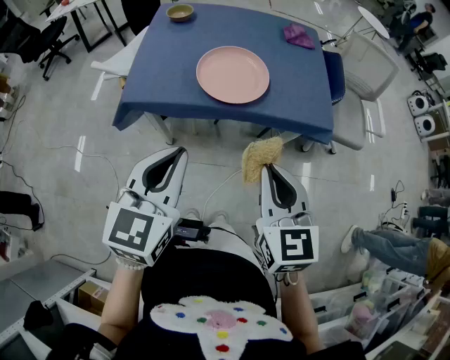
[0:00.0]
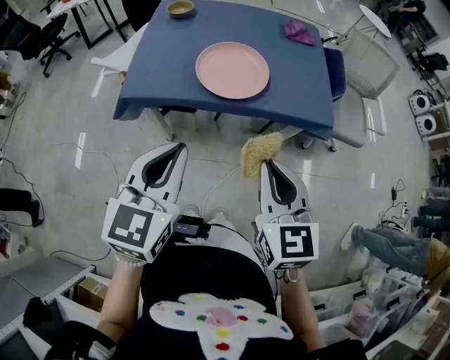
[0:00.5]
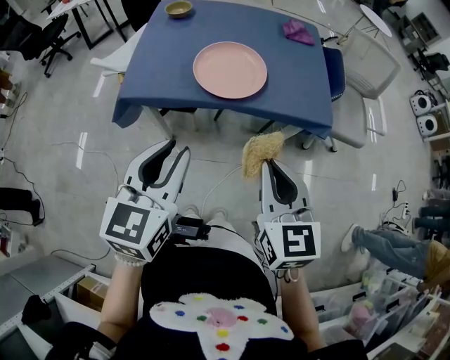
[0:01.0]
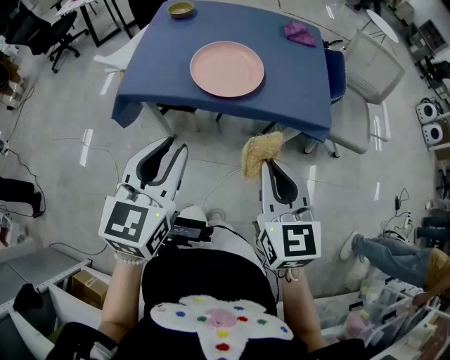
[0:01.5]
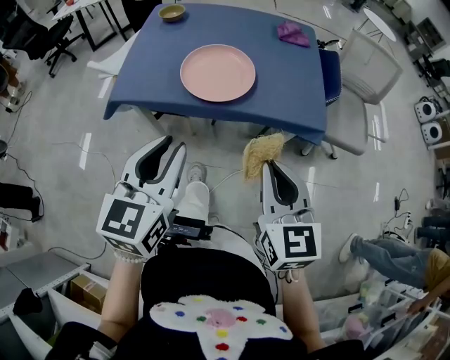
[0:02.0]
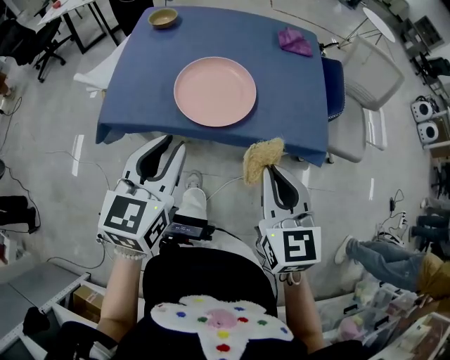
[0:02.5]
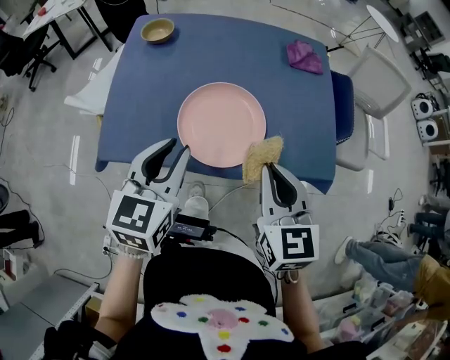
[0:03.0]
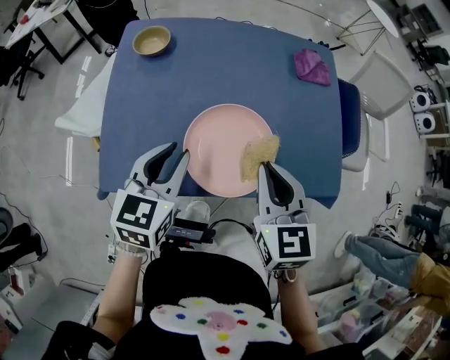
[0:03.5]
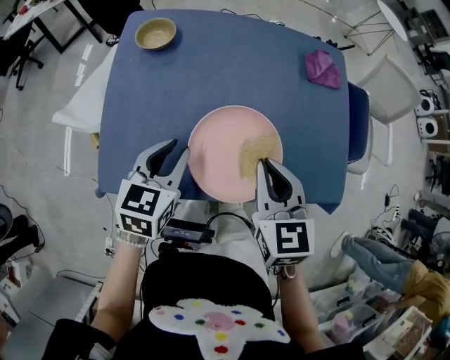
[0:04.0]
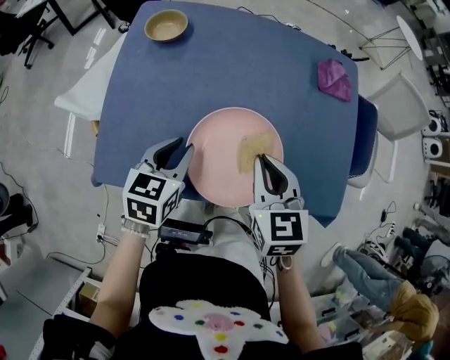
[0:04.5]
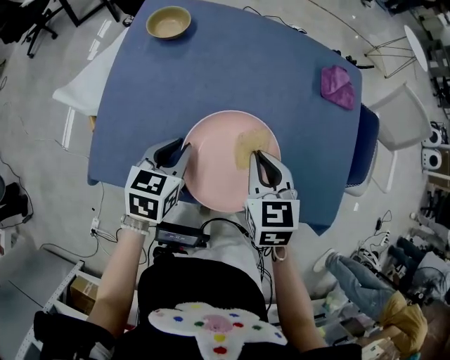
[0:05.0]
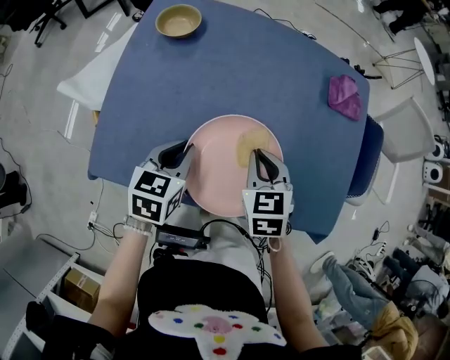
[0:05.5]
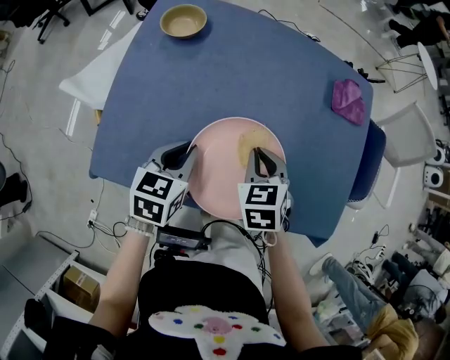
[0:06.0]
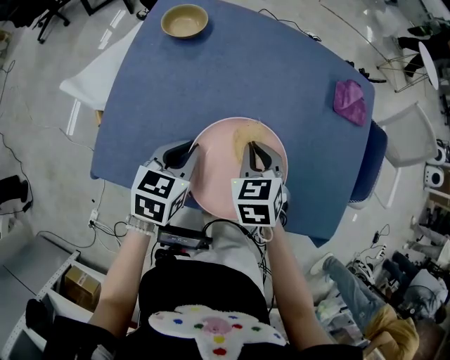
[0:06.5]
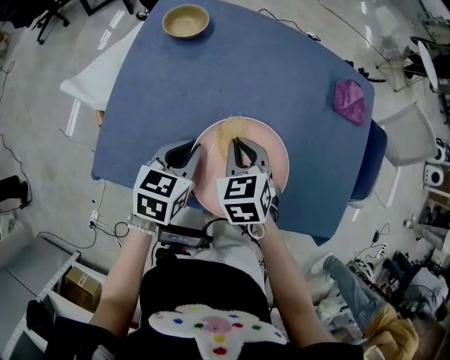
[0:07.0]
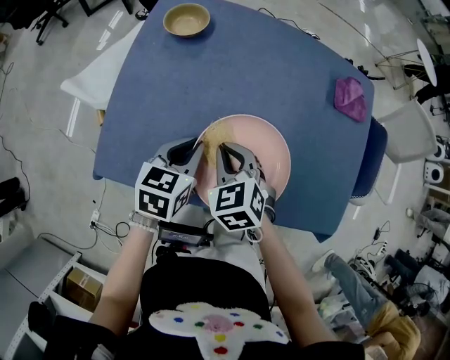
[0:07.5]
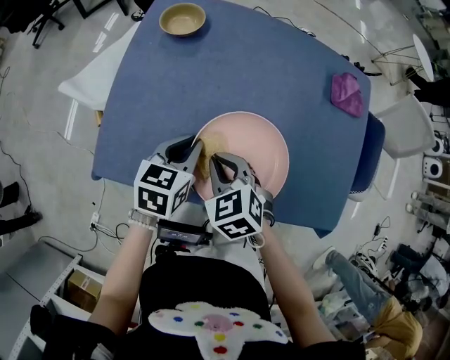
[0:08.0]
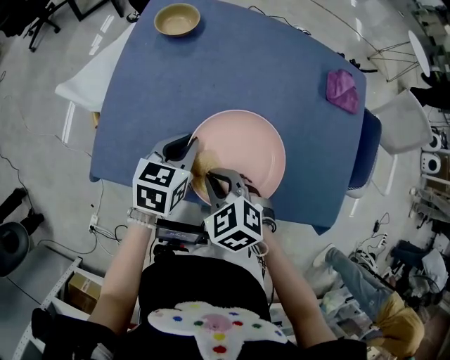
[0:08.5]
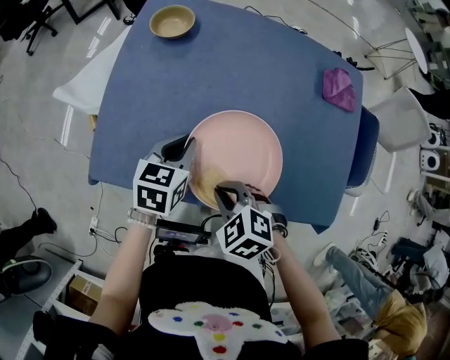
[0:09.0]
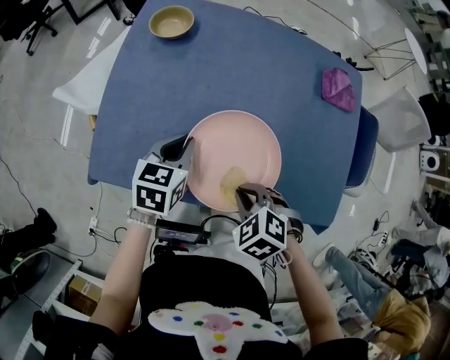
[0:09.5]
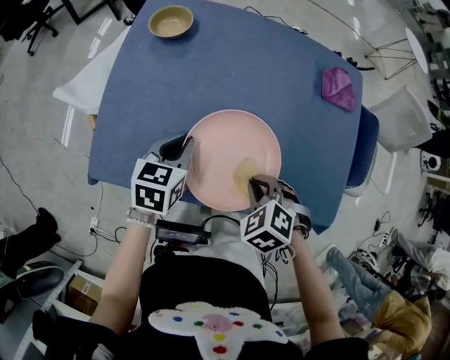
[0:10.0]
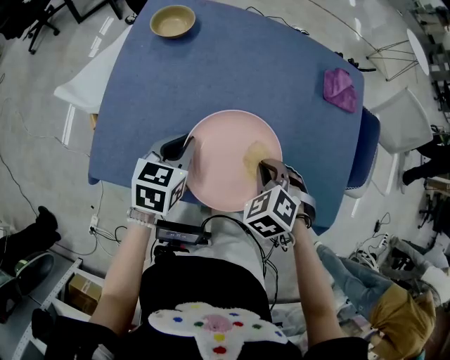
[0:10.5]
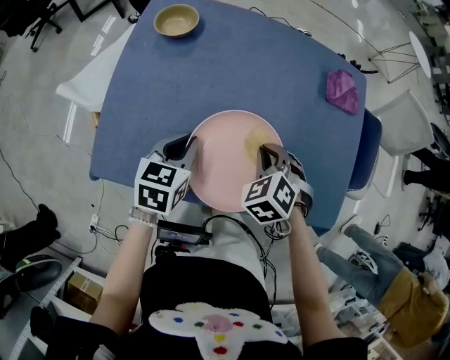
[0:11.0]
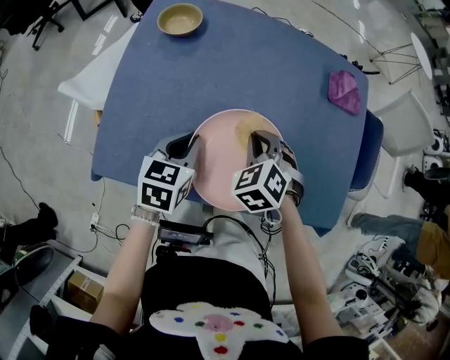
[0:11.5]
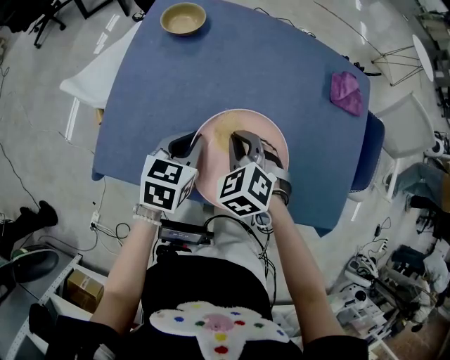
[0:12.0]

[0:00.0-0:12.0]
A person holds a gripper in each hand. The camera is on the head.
0:00.0 to 0:02.0: The left gripper opens up. The right gripper moves to the right, roughly 5 cm.
0:02.0 to 0:04.0: The right gripper heads forward and to the left, covering approximately 30 cm, while the left gripper goes about 30 cm forward and downward, and rotates roughly 20 degrees.
0:04.0 to 0:06.0: The left gripper goes roughly 5 cm downward; the right gripper moves downward and forward, approximately 15 cm, and changes its angle by some 30 degrees.
0:06.0 to 0:08.0: The right gripper heads to the left and backward, covering some 10 cm, and swivels roughly 20 degrees.
0:08.0 to 0:10.0: The right gripper travels to the right and backward by approximately 15 cm, and swivels about 30 degrees.
0:10.0 to 0:12.0: The right gripper goes approximately 15 cm to the left and forward.

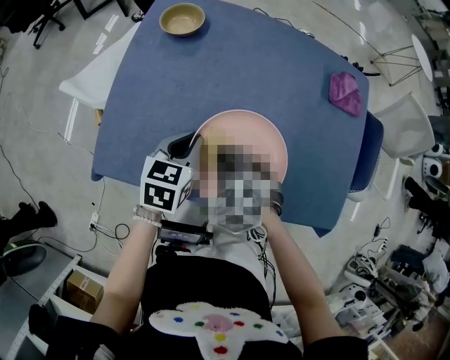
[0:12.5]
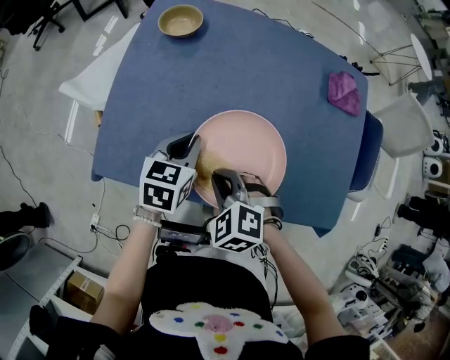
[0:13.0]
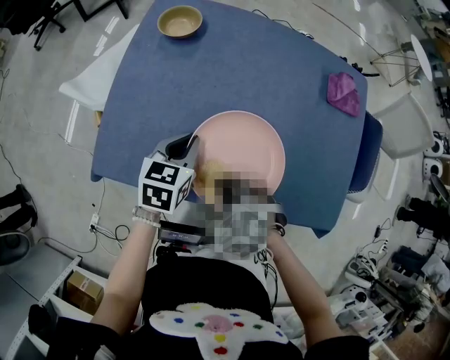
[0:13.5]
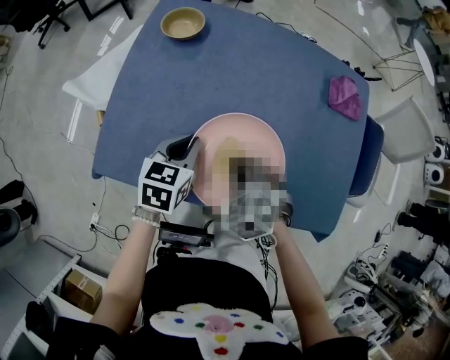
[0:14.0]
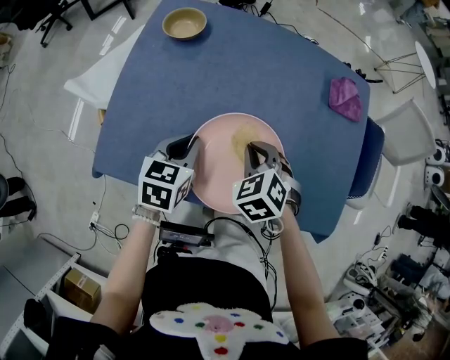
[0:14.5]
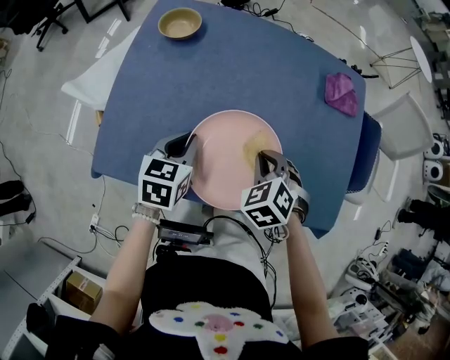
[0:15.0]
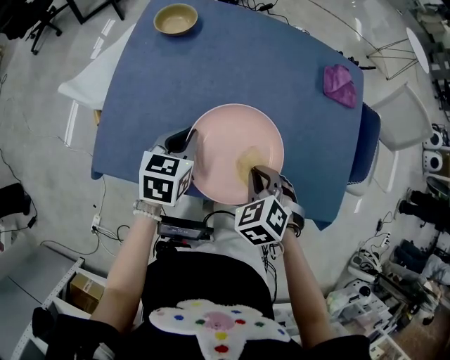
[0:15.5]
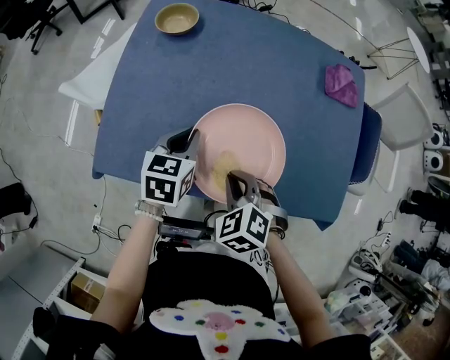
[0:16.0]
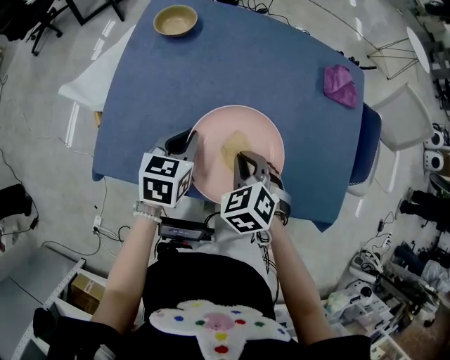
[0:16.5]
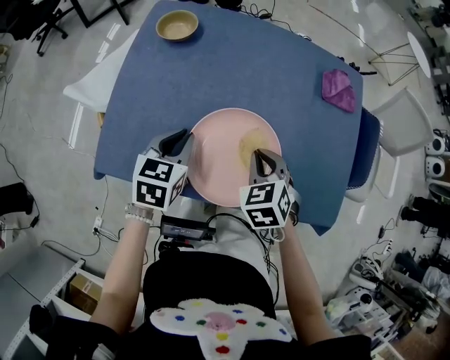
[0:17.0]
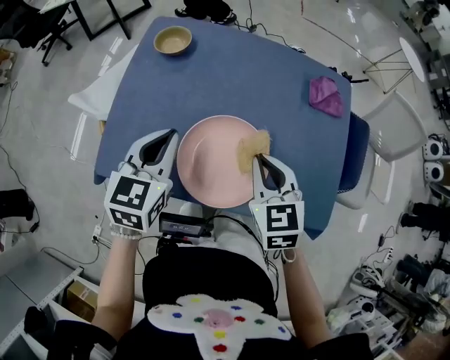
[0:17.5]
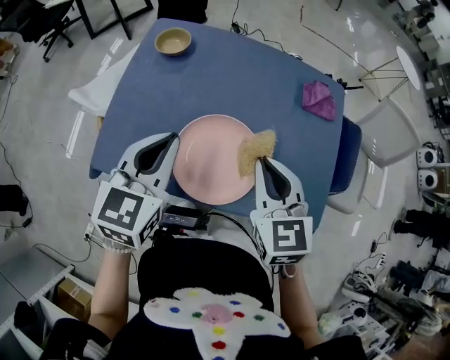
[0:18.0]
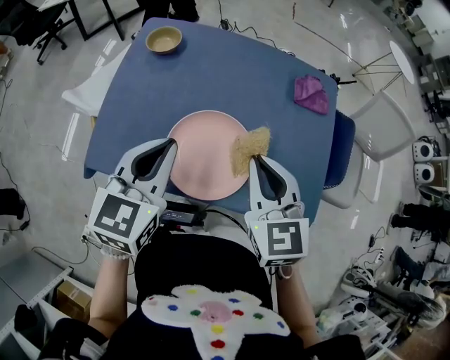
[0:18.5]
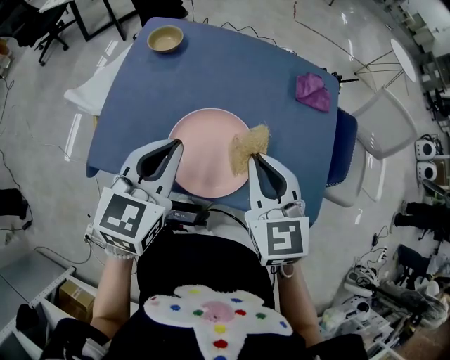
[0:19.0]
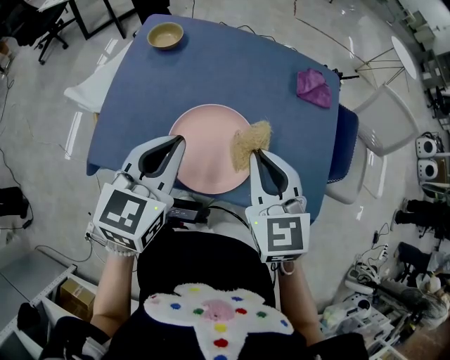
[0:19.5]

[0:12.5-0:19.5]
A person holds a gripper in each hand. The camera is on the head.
0:12.5 to 0:14.5: The right gripper travels to the right by about 10 cm, and travels backward and back again, about 5 cm each way.
0:14.5 to 0:16.0: The right gripper goes approximately 10 cm backward.
0:16.0 to 0:17.5: The right gripper travels upward, forward and to the right by roughly 15 cm, and turns by some 40 degrees, while the left gripper travels upward by roughly 15 cm.
0:17.5 to 0:19.5: The grippers both shift upward by some 5 cm.

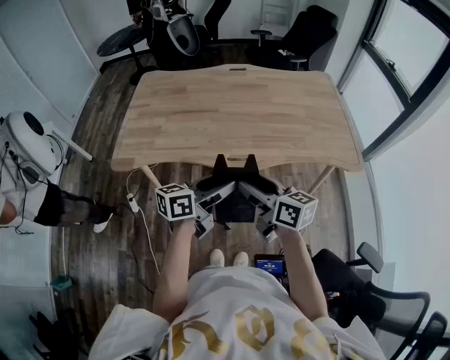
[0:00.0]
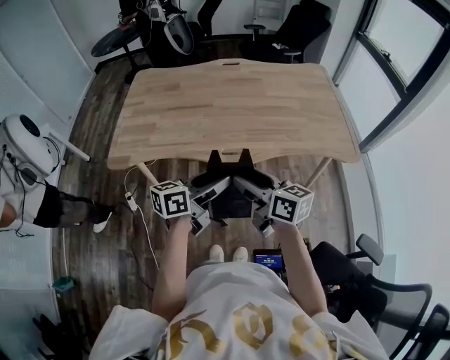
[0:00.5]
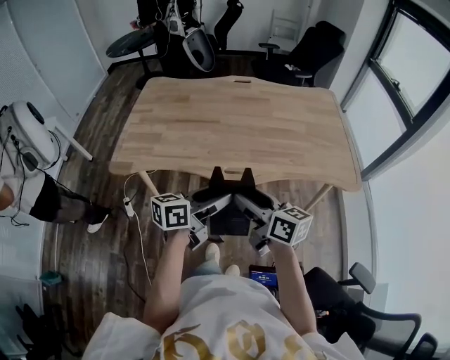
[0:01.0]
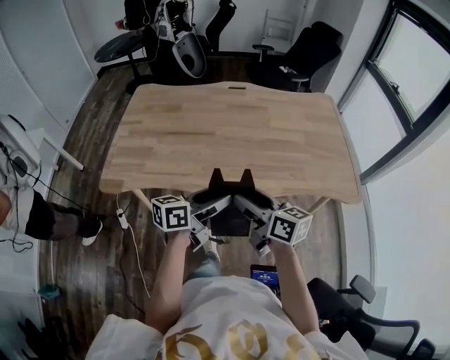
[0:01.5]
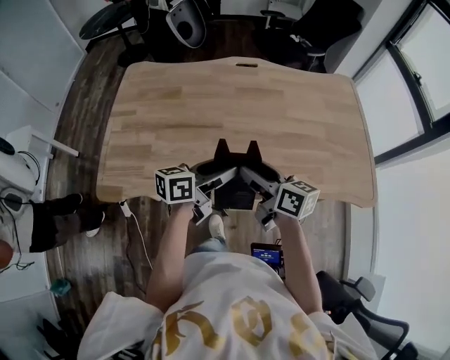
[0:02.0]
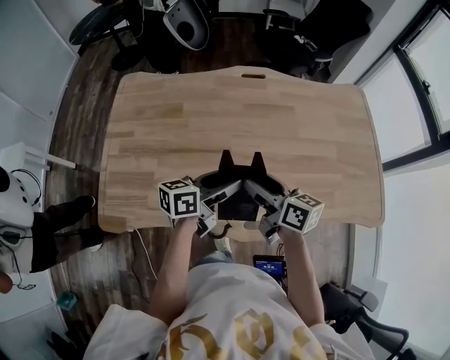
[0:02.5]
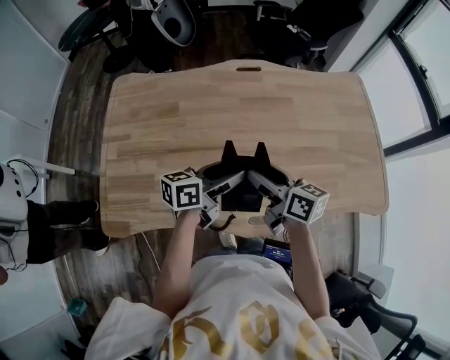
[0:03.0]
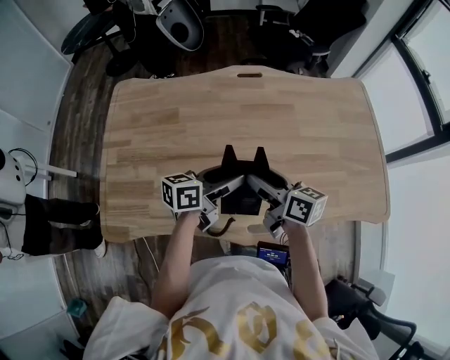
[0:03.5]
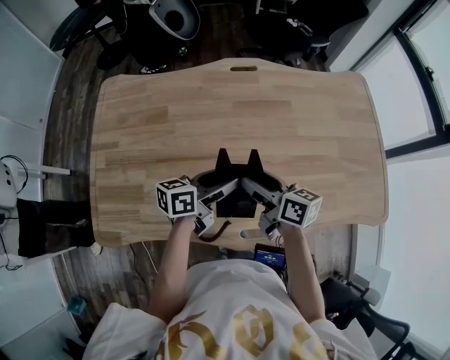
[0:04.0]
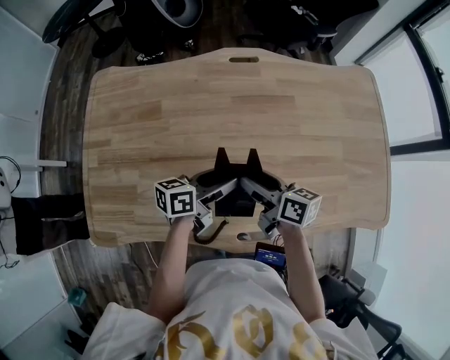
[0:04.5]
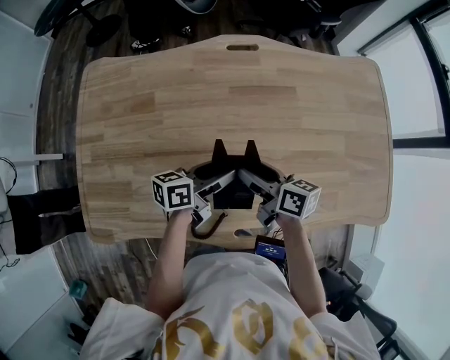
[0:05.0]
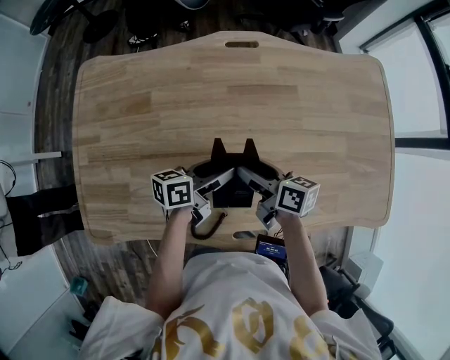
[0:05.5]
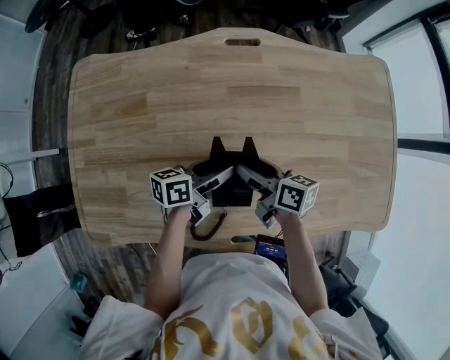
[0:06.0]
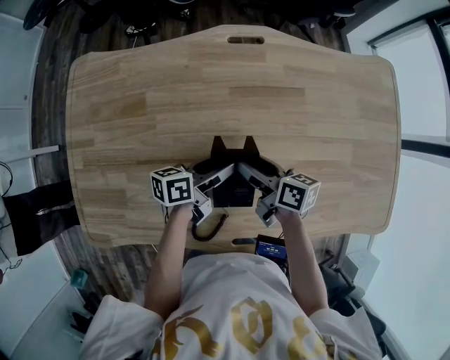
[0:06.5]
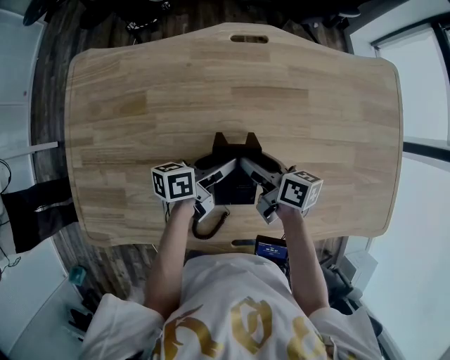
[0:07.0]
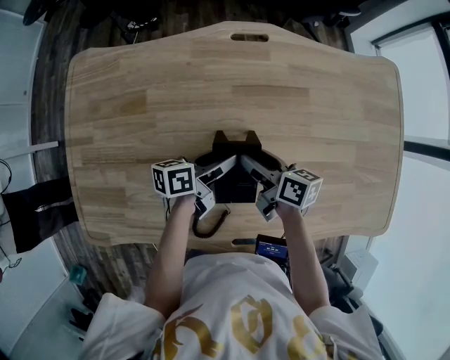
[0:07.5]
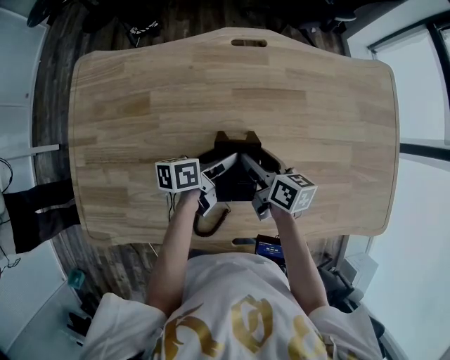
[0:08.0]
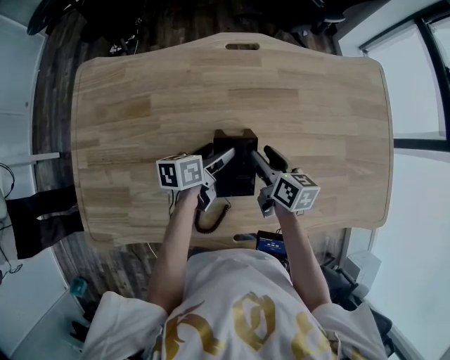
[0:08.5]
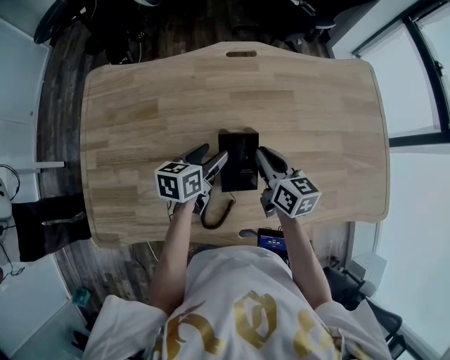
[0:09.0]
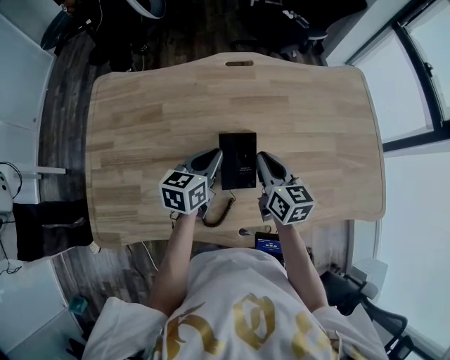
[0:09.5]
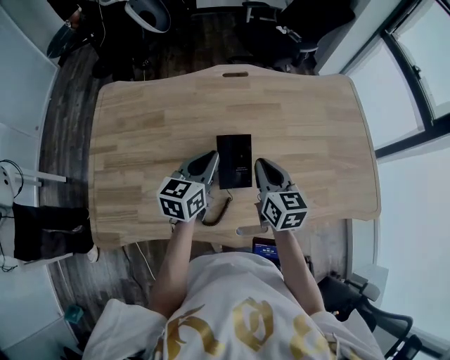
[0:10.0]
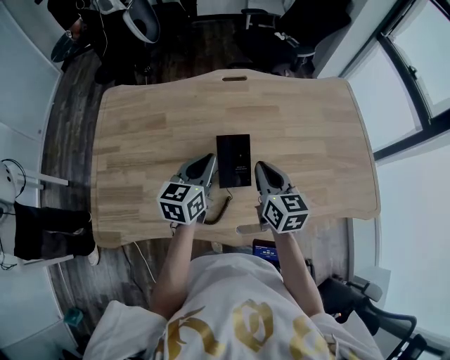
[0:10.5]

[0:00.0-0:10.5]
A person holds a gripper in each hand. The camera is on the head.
0:00.0 to 0:02.0: The grippers both shift forward by approximately 25 cm.
0:02.0 to 0:04.0: Both grippers travel together forward and downward, some 20 cm.
0:04.0 to 0:06.5: The grippers both shift downward and forward by some 15 cm.
0:06.5 to 0:08.5: The right gripper rotates about 20 degrees.
0:08.5 to 0:10.5: Both grippers move upward and backward, some 20 cm. The right gripper swivels roughly 30 degrees, and closes up. Meanwhile the left gripper rotates roughly 40 degrees, and closes up.
